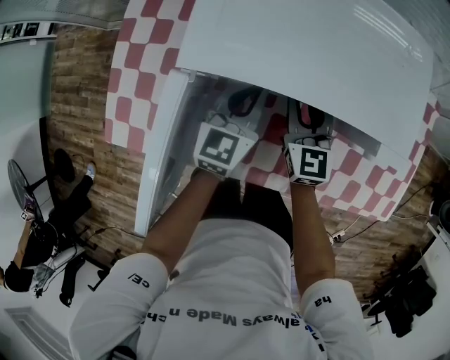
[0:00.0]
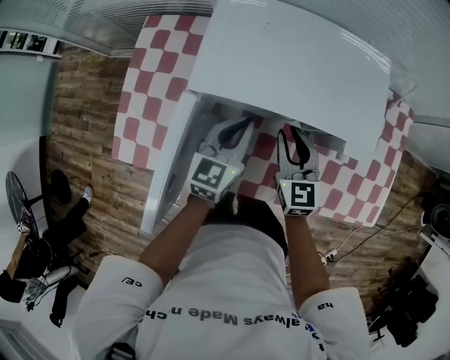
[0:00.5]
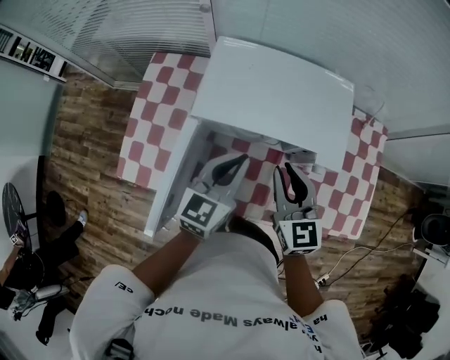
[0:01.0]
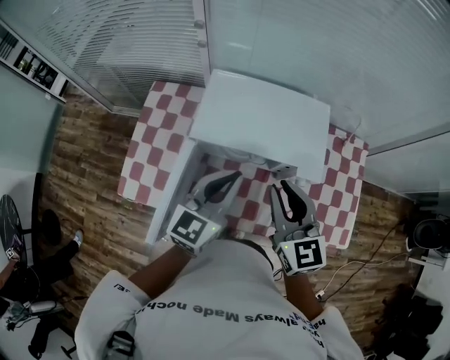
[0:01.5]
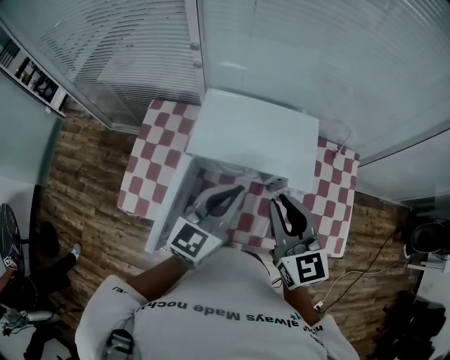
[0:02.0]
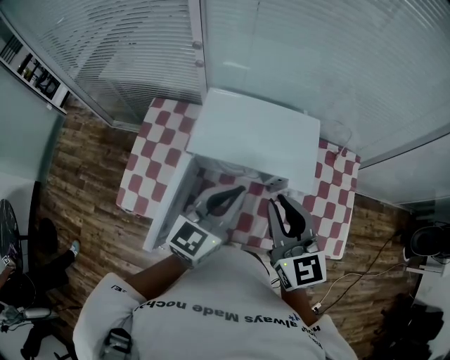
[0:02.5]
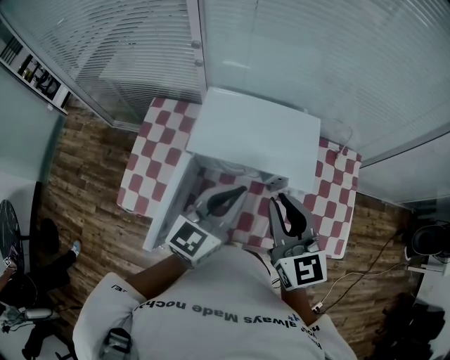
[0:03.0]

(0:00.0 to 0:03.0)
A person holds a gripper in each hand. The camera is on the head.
0:00.0 - 0:01.5: The right gripper moves upward and backward, some 35 cm. Meanwhile the left gripper shifts about 30 cm upward.
0:01.5 - 0:03.0: The left gripper shifts by about 5 cm; the right gripper changes place by roughly 5 cm.

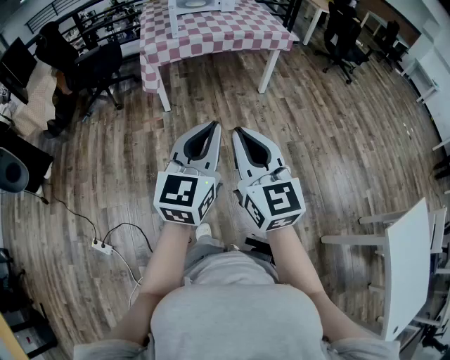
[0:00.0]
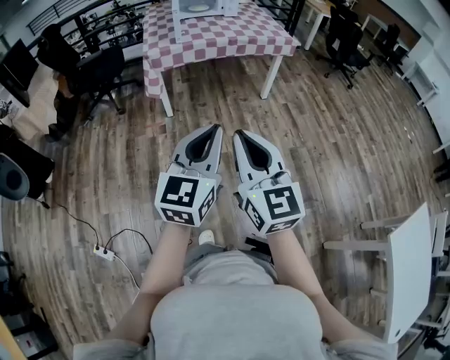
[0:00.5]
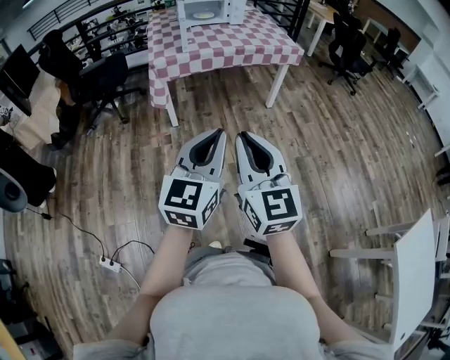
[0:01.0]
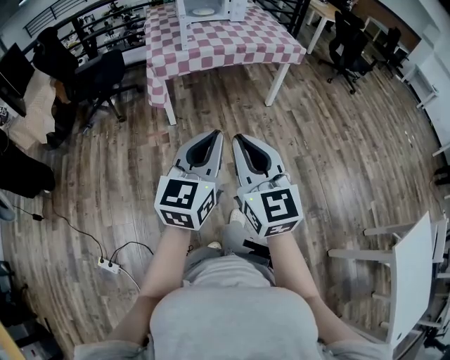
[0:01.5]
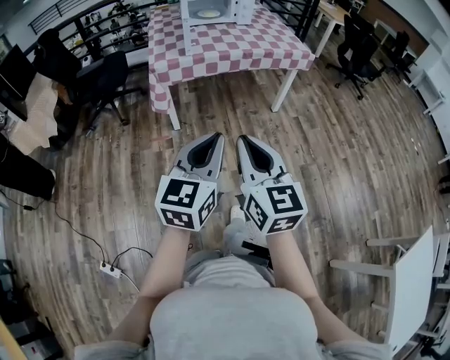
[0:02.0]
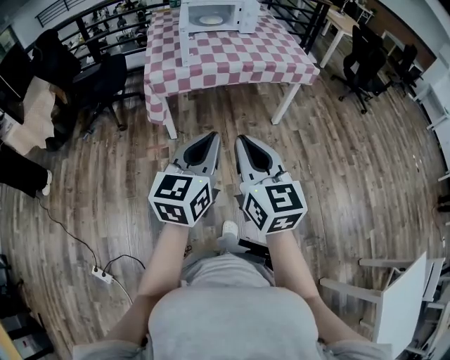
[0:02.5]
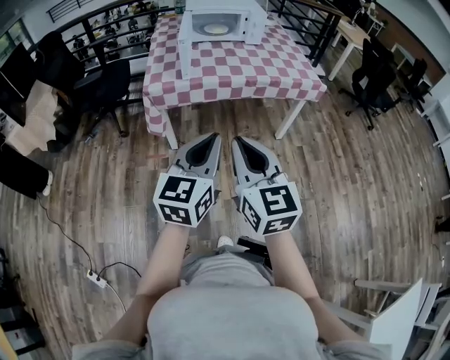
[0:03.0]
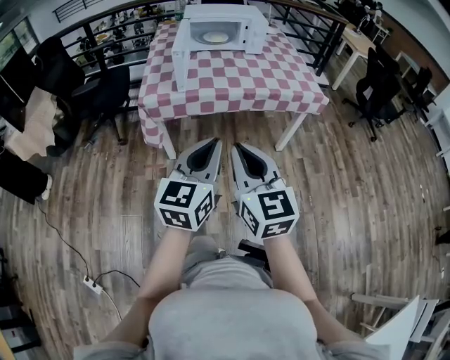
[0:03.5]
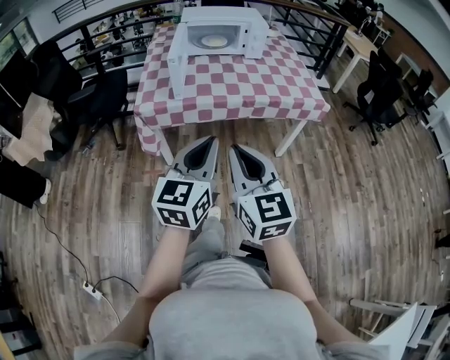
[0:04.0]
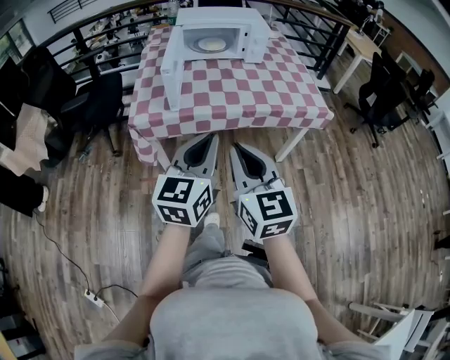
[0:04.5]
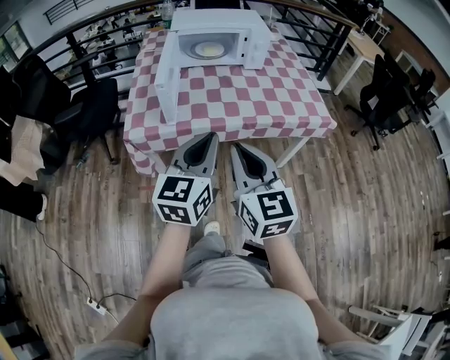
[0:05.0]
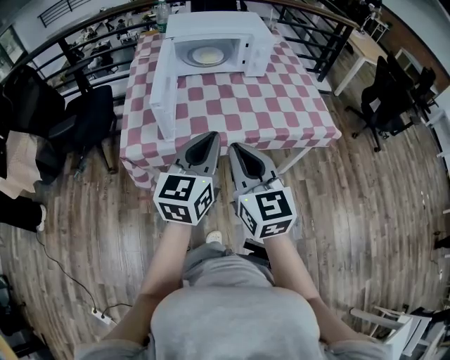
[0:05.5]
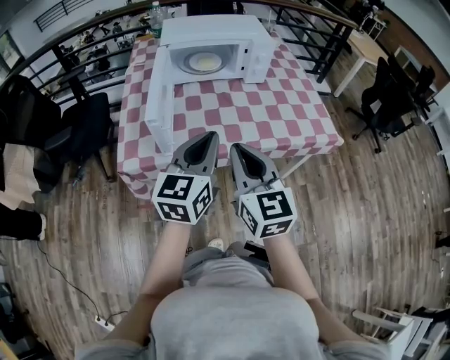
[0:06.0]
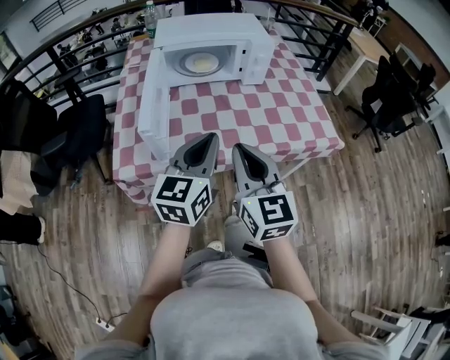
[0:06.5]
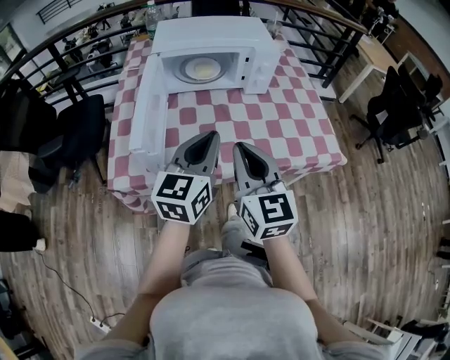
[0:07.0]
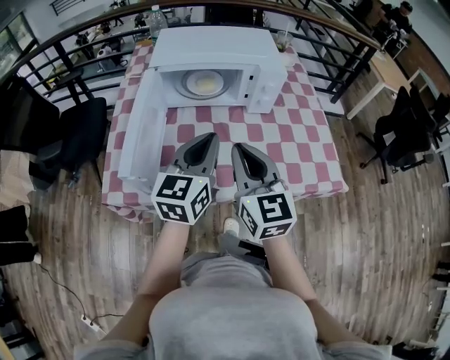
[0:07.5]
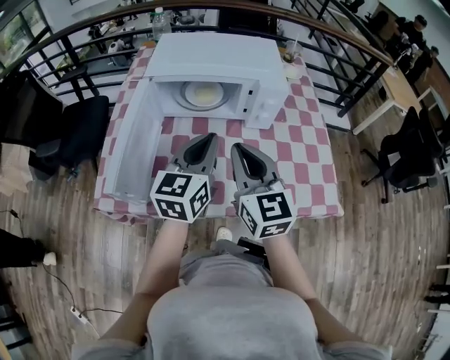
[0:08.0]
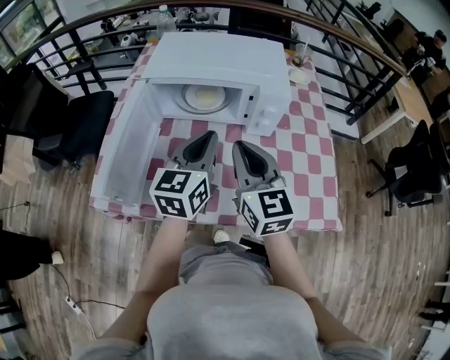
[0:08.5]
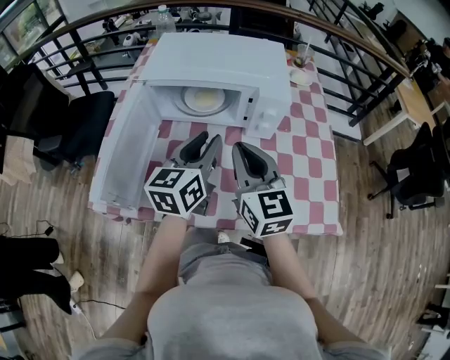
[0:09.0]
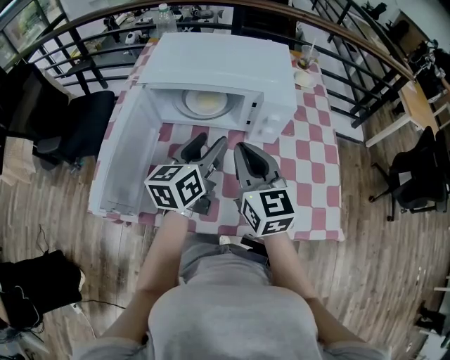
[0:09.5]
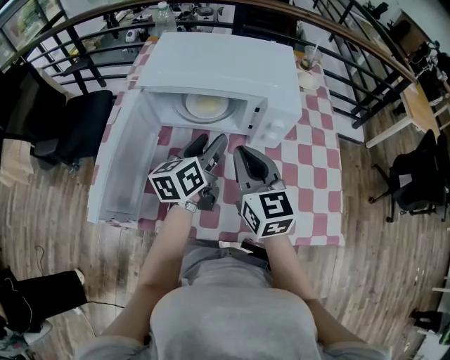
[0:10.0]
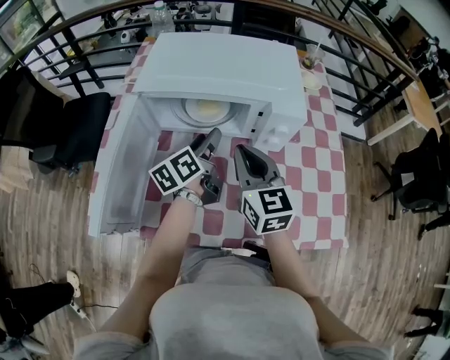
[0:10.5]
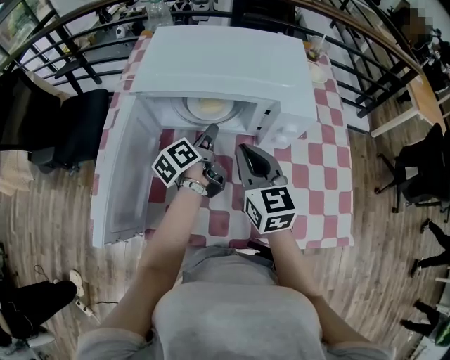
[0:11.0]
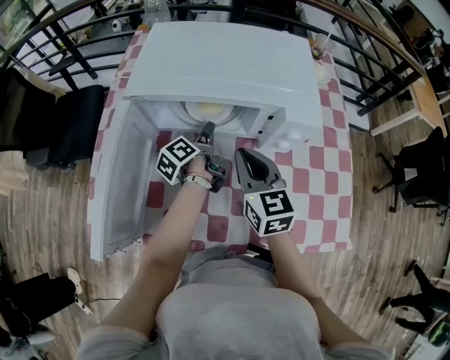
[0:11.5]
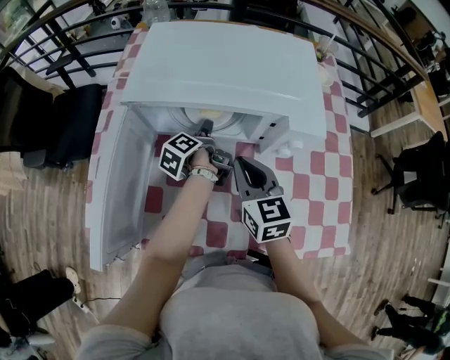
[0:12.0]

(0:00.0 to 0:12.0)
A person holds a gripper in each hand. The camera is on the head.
0:00.0 - 0:02.0: The grippers both shift forward and to the left by about 20 cm.
0:02.0 - 0:04.0: Both grippers move forward, approximately 30 cm.
0:04.0 - 0:06.0: The grippers both shift forward by about 30 cm.
0:06.0 - 0:08.0: Both grippers move forward, approximately 25 cm.
0:08.0 - 0:10.0: The grippers both shift forward and downward by roughly 15 cm. The left gripper changes its angle by roughly 30 degrees, and opens up.
0:10.0 - 0:12.0: The right gripper goes roughly 10 cm downward and forward; the left gripper is displaced downward and forward by roughly 20 cm, and rolls counterclockwise, seen from behind, by roughly 50 degrees.

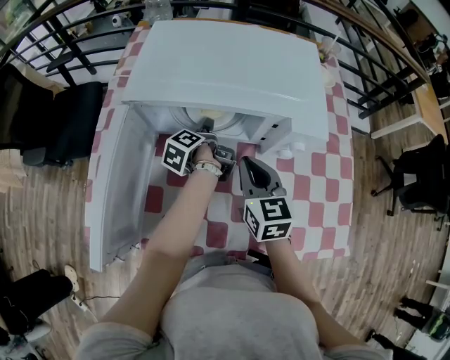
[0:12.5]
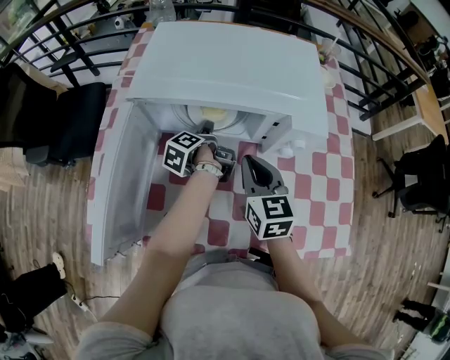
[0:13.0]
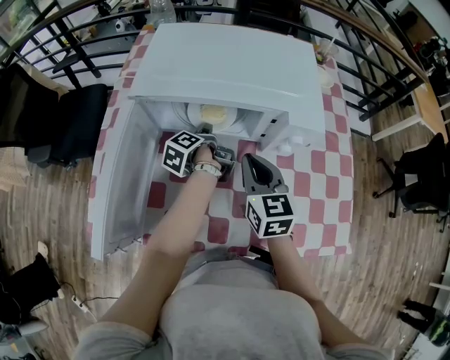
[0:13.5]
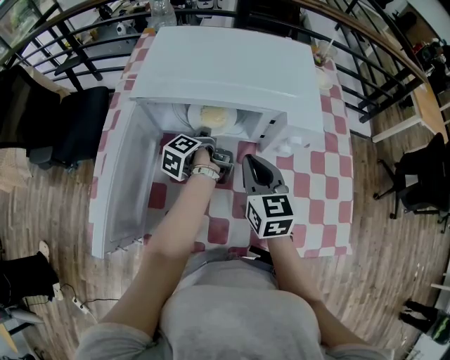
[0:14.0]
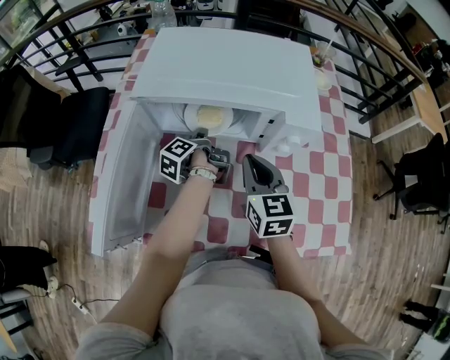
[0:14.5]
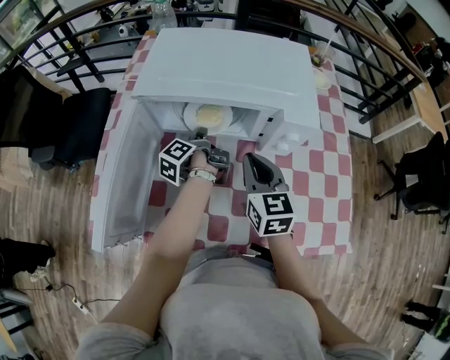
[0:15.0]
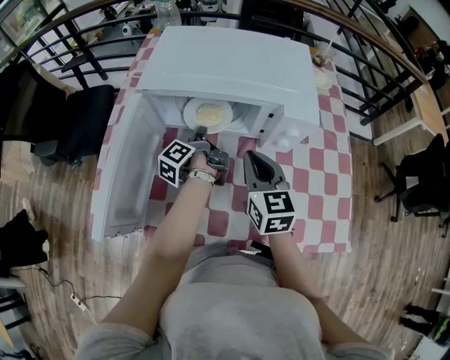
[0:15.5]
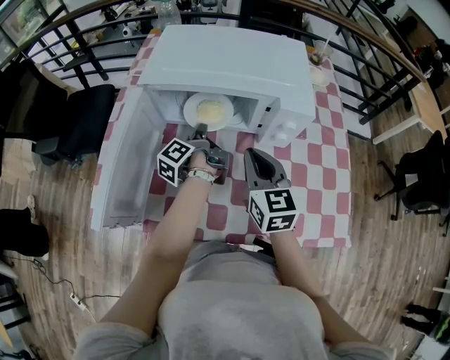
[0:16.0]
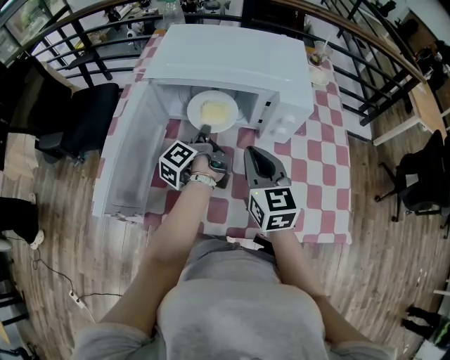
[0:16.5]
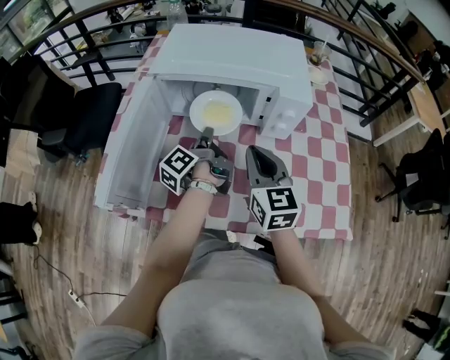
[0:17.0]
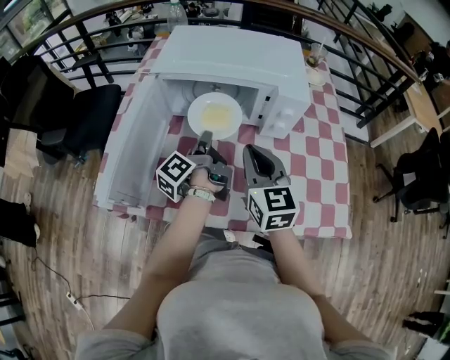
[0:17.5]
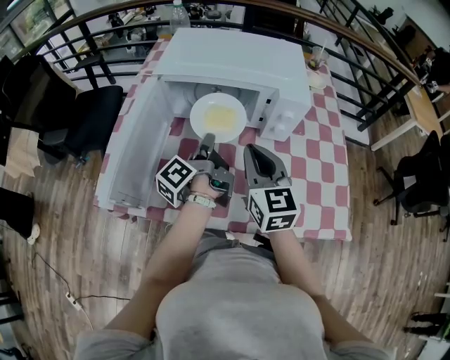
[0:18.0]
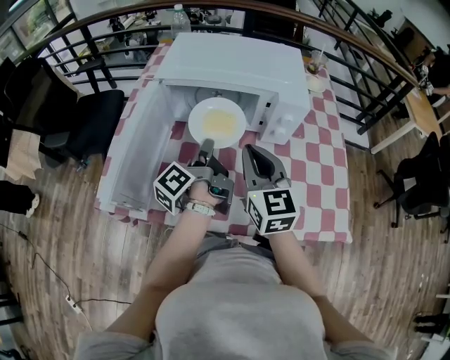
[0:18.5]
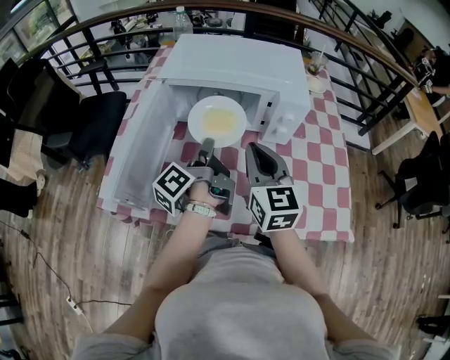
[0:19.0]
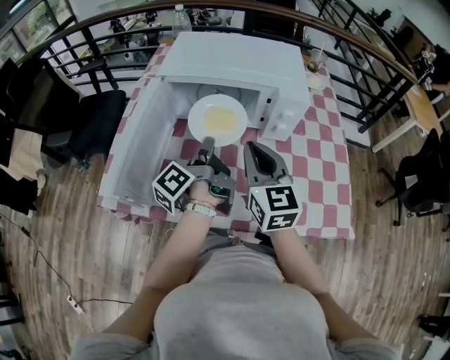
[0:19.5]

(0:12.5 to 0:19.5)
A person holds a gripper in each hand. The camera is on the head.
0:12.5 - 0:14.5: The left gripper closes up.
0:14.5 - 0:16.0: The left gripper ends up about 5 cm from where it was.
0:16.0 - 0:17.5: The left gripper is displaced backward and upward by about 10 cm. Meanwhile the right gripper is displaced backward by approximately 5 cm.
0:17.5 - 0:19.5: The left gripper shifts by about 5 cm.

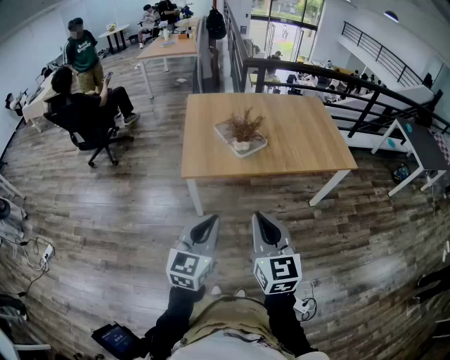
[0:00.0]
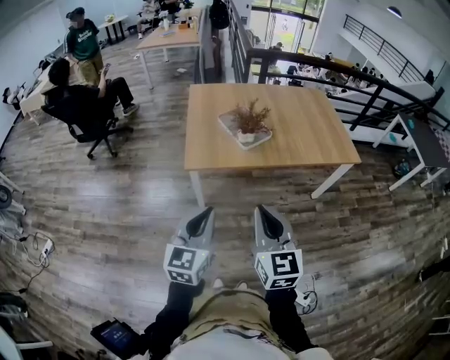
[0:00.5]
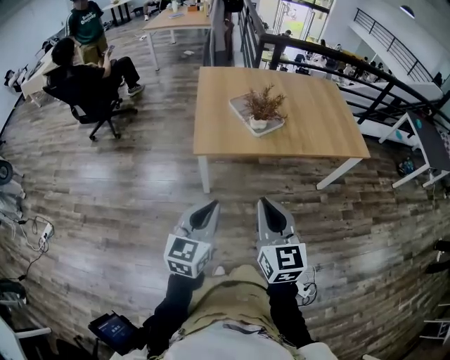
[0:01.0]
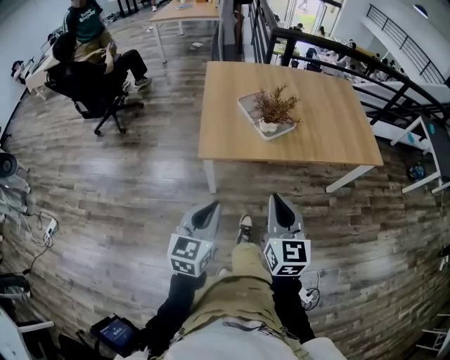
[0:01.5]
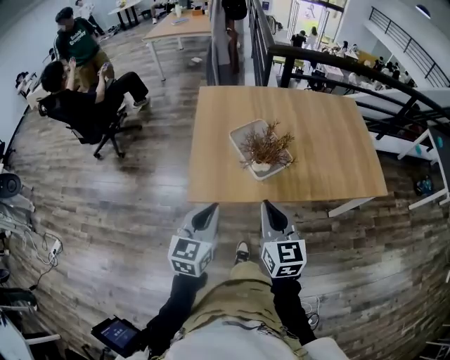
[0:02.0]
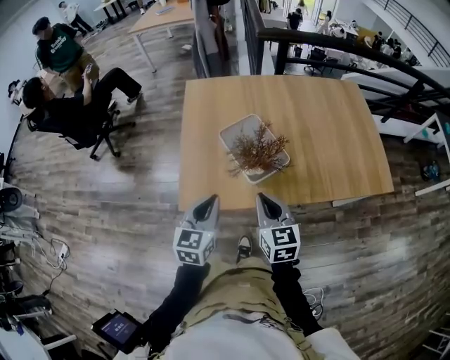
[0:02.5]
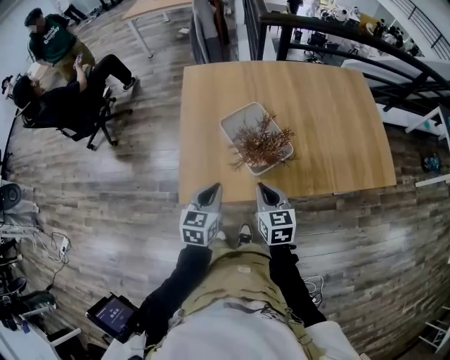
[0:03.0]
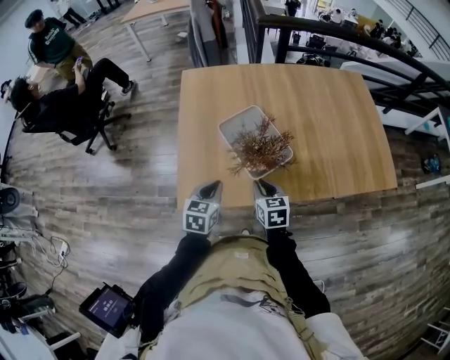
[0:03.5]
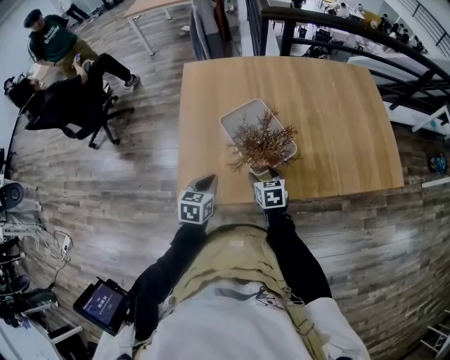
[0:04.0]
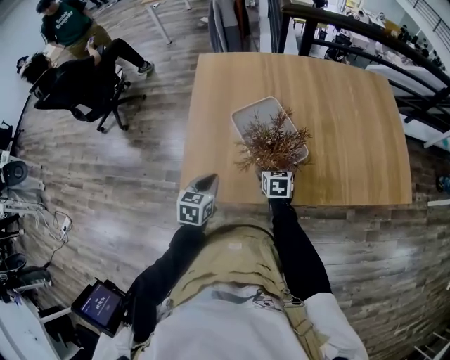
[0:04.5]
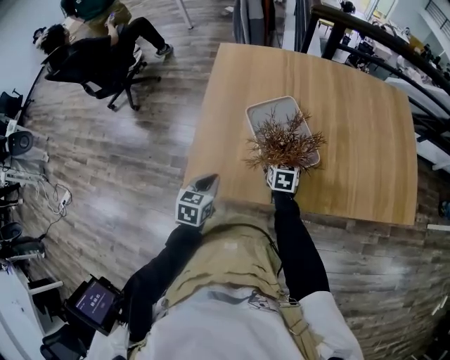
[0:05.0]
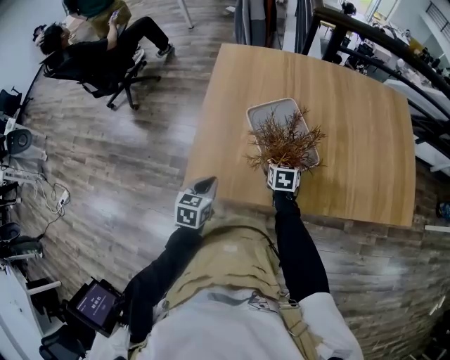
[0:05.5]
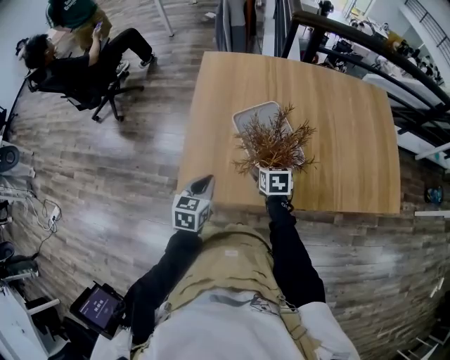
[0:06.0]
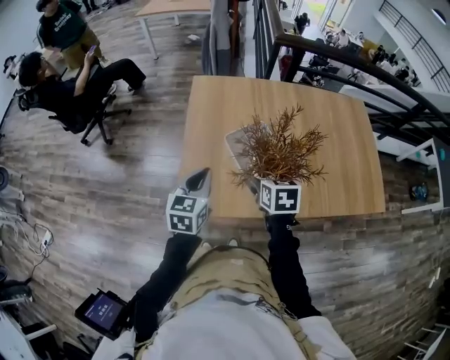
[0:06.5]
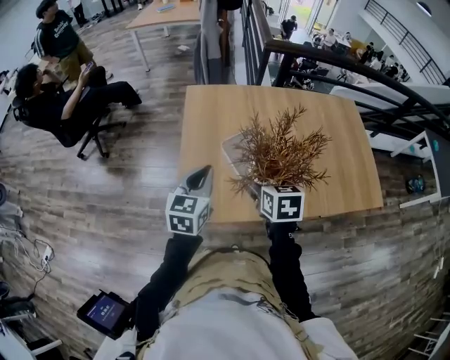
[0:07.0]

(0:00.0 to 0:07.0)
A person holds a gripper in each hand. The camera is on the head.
0:00.0 - 0:02.0: Both grippers move forward, some 30 cm.
0:02.0 - 0:03.5: The right gripper moves downward and forward, some 30 cm, and changes its angle by about 20 degrees. Meanwhile the left gripper is displaced forward and downward by roughly 25 cm, and swivels roughly 20 degrees.
0:03.5 - 0:05.0: The left gripper moves to the left, approximately 10 cm. Meanwhile the right gripper moves forward and downward, roughly 15 cm, and opens.
0:05.0 - 0:07.0: The grippers both shift upward by approximately 25 cm. The left gripper changes its angle by roughly 20 degrees.
